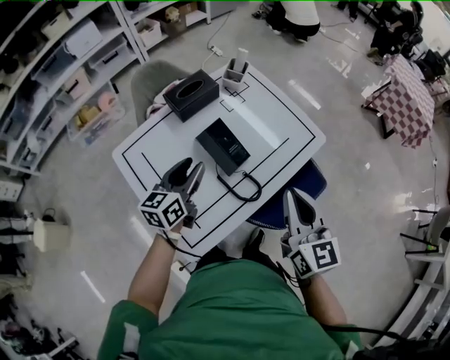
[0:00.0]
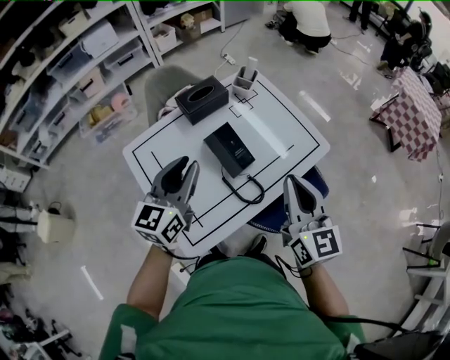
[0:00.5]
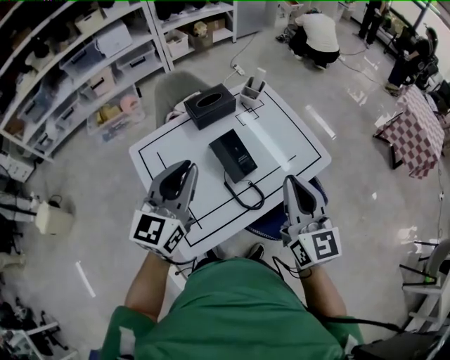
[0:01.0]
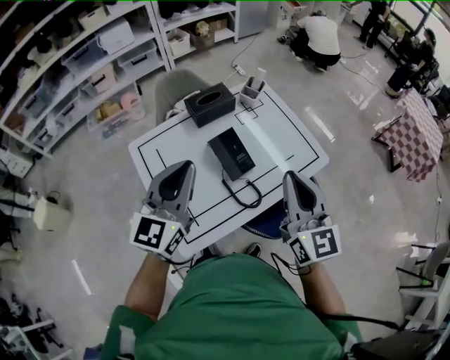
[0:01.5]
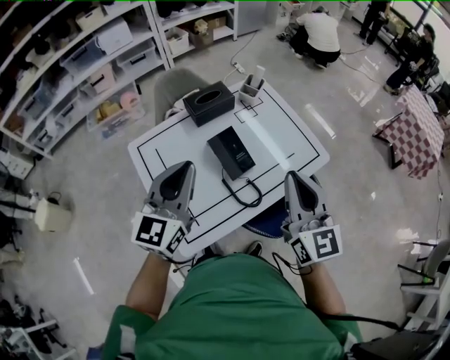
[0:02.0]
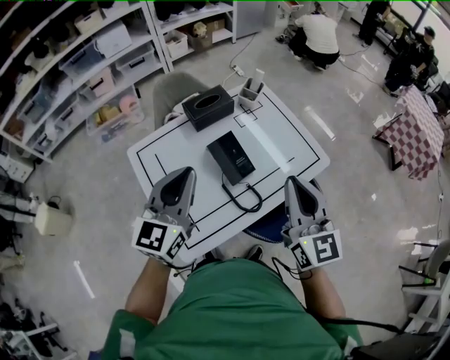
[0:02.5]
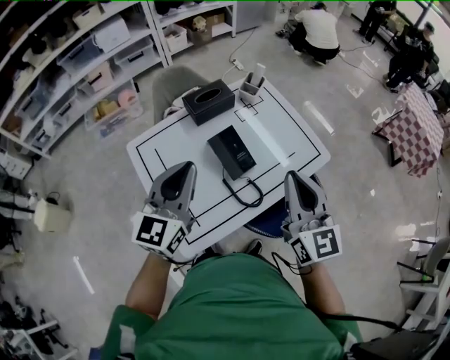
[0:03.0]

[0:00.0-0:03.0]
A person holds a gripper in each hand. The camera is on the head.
0:00.0 to 0:01.5: The right gripper shifts roughly 10 cm upward; the left gripper travels upward and backward by roughly 20 cm, changes its angle by some 30 degrees, and closes its fingers.
0:01.5 to 0:03.0: The grippers make only small movements.

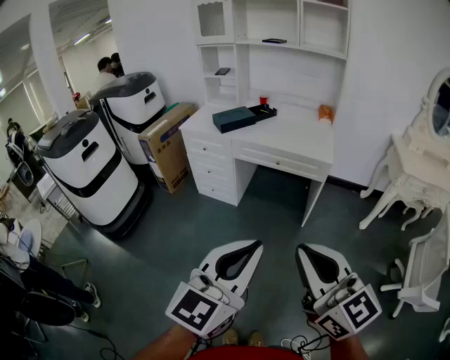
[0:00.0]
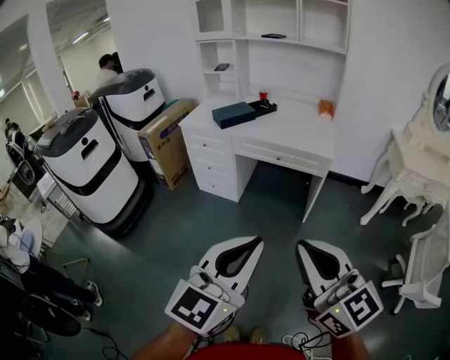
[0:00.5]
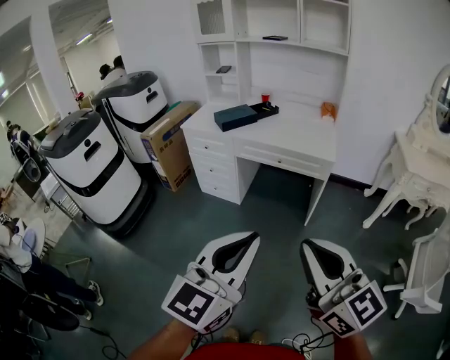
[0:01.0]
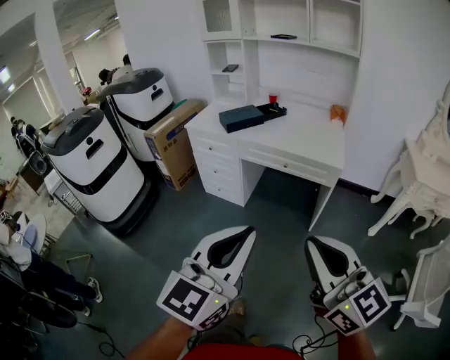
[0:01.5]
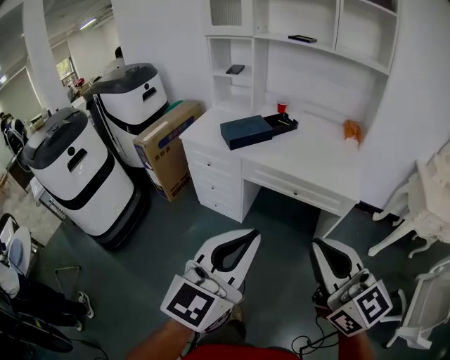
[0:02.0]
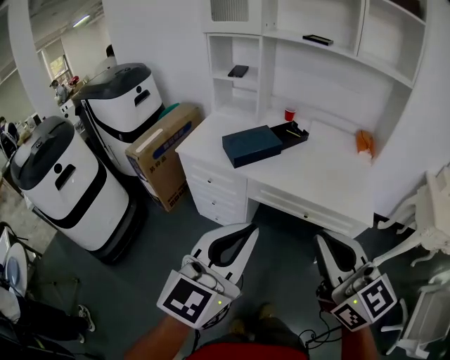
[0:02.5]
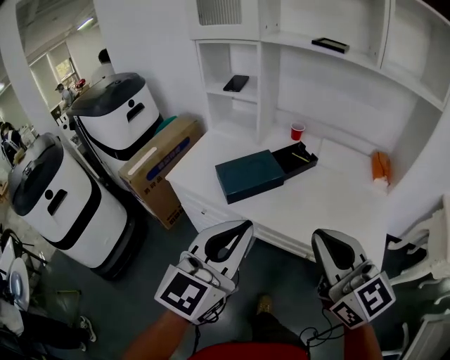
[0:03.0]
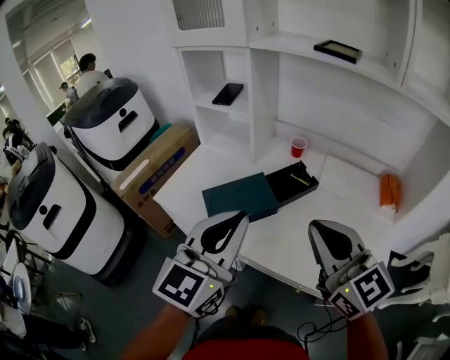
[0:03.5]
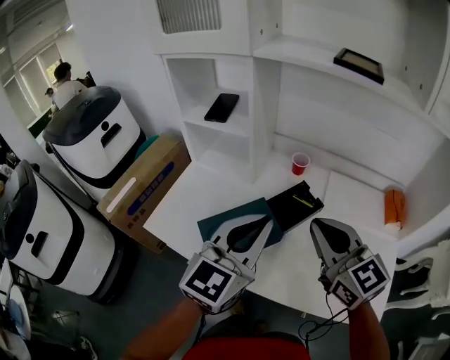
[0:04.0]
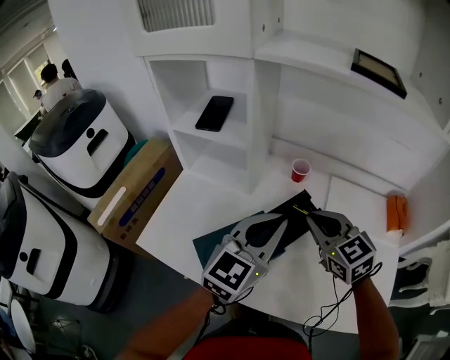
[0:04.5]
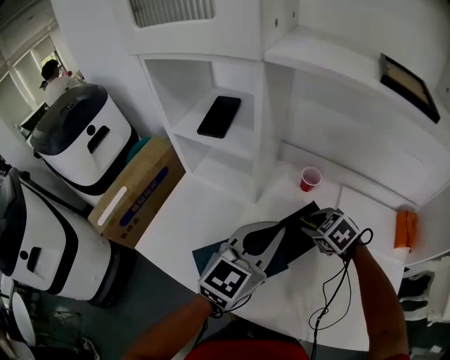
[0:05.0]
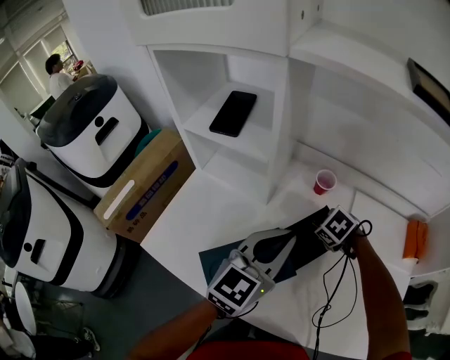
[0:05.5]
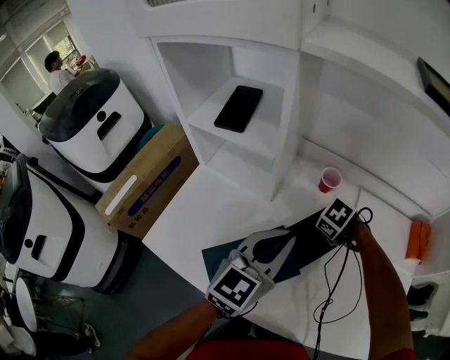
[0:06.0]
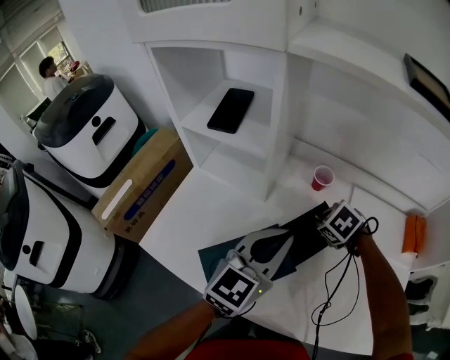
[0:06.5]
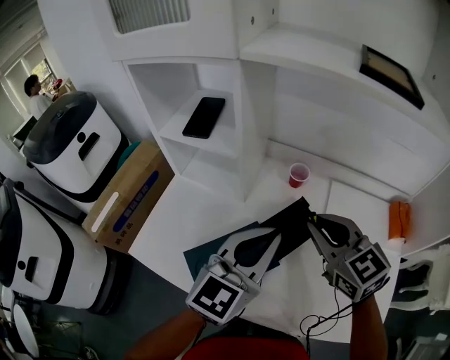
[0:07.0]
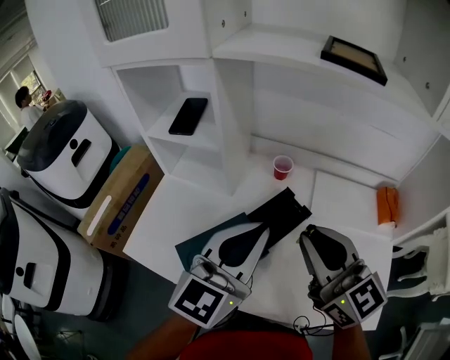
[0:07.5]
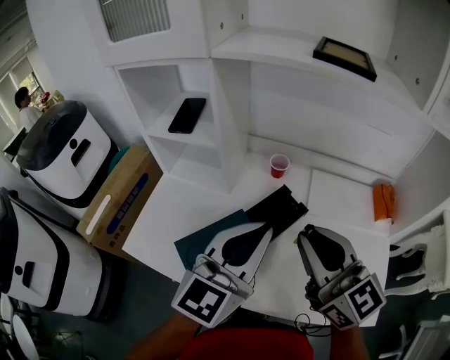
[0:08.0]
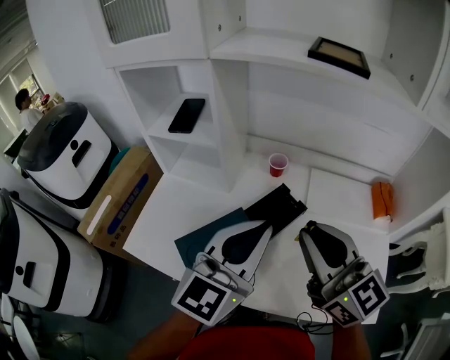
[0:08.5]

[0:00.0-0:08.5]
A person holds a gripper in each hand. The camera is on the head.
0:00.0 to 0:02.0: Both grippers travel together forward, about 25 cm.
0:02.0 to 0:04.0: The pair of grippers is taken forward, roughly 60 cm.
0:04.0 to 0:06.5: The right gripper moves downward, some 25 cm, points its fingers some 70 degrees further downward, and opens, then closes again. Meanwhile the left gripper changes place by approximately 15 cm.
0:06.5 to 0:08.5: The right gripper is displaced upward and backward by approximately 35 cm, and angles its fingers upward, by approximately 70 degrees. Meanwhile the left gripper travels upward and backward by approximately 10 cm.

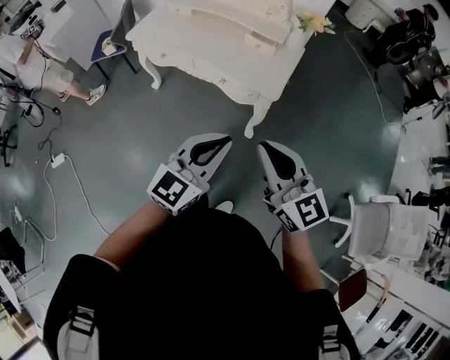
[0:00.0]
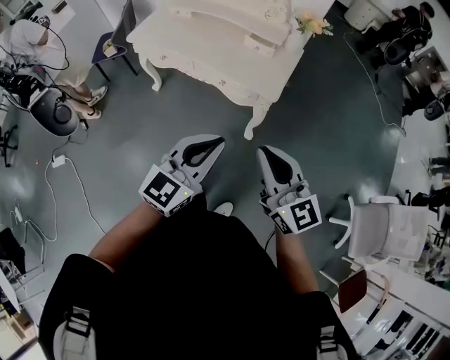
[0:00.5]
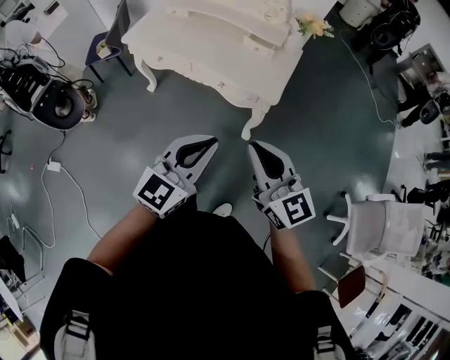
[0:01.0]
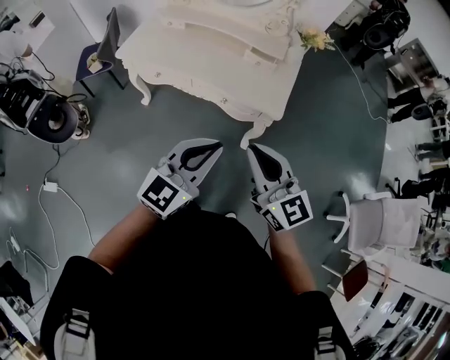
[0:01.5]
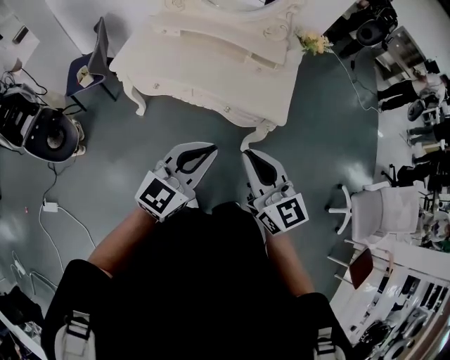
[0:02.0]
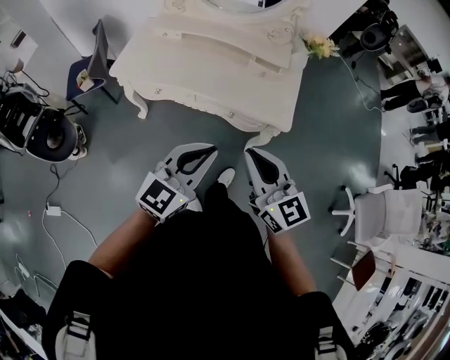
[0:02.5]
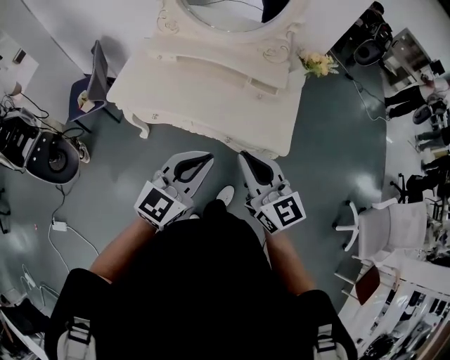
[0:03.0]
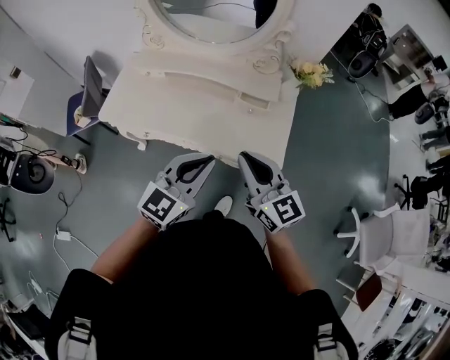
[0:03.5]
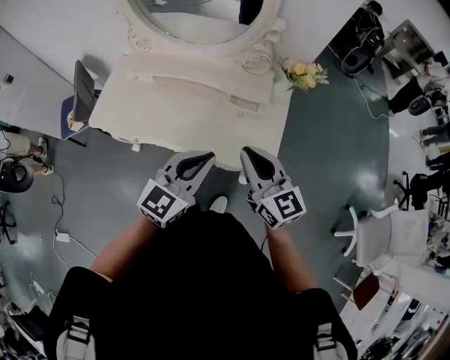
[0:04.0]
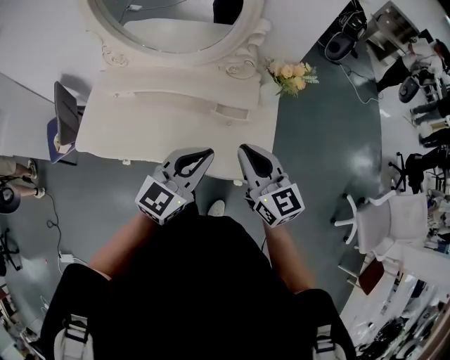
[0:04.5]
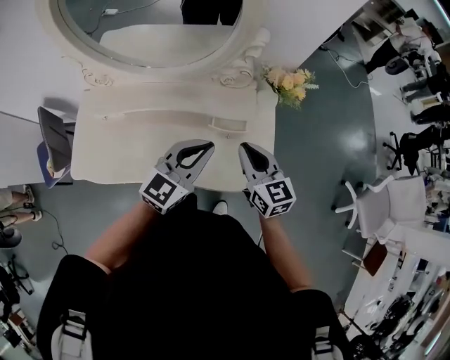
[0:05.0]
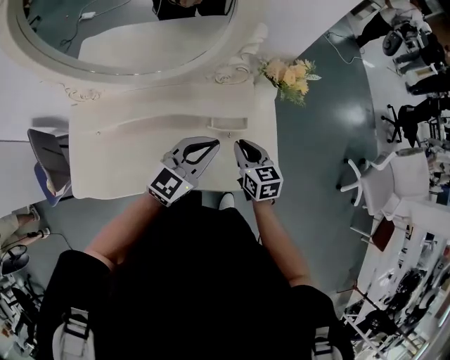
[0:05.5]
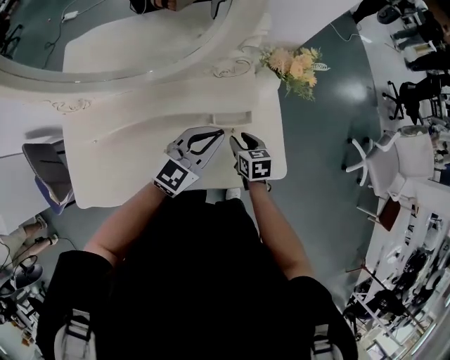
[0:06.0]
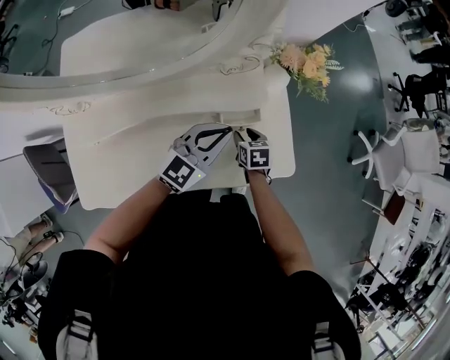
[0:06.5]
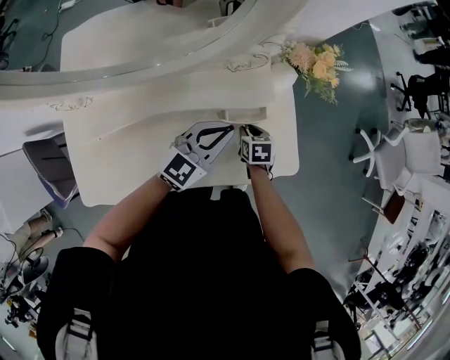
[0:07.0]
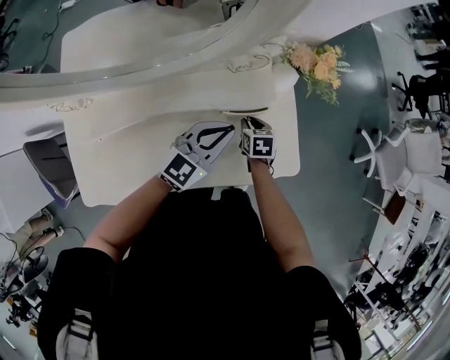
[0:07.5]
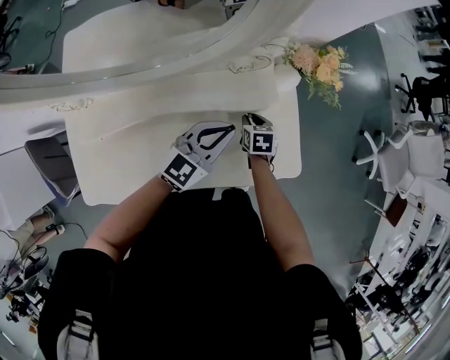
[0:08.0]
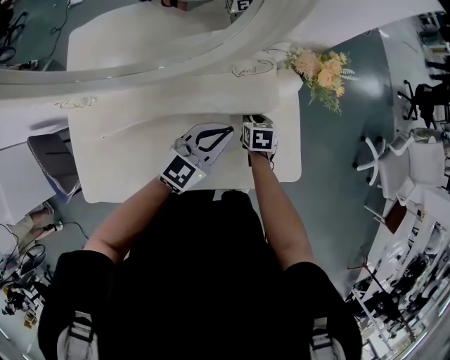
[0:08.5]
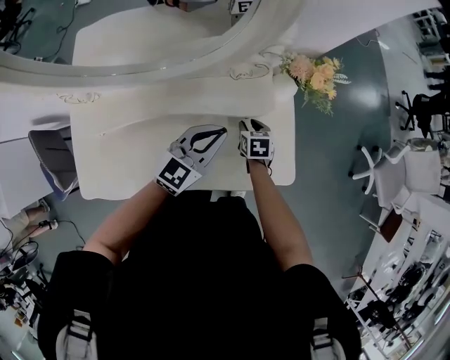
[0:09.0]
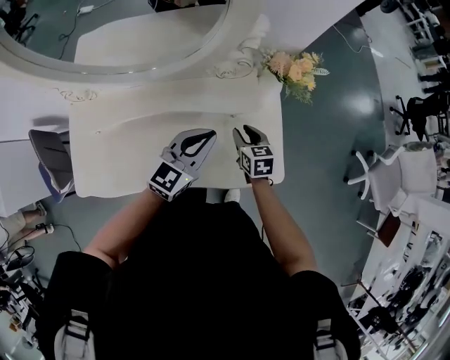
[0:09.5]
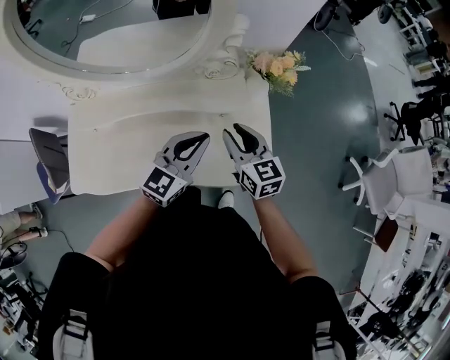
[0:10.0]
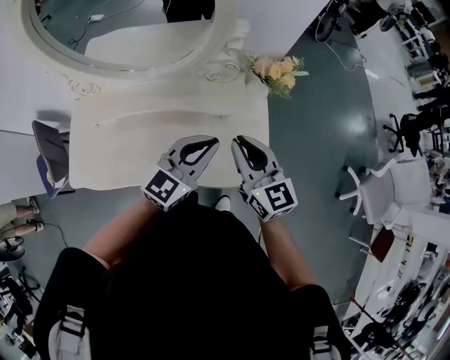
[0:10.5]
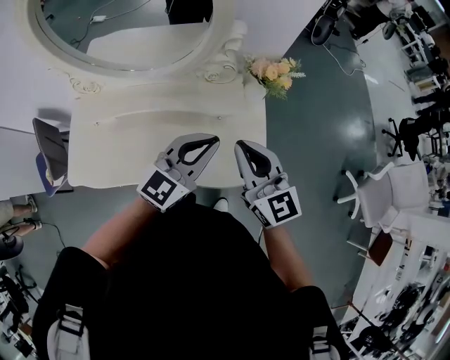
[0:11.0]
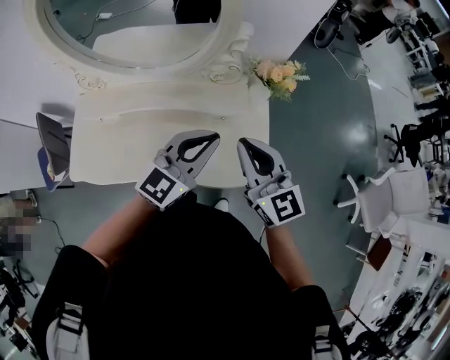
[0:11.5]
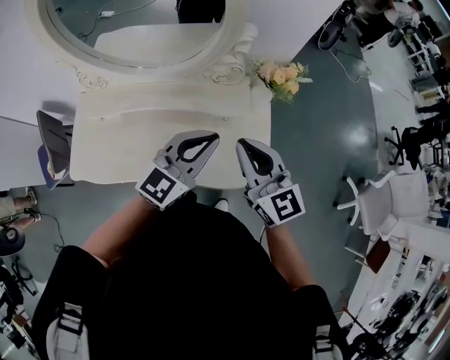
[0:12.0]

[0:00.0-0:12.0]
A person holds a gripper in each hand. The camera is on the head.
0:00.0 to 0:02.0: The two grippers go roughly 25 cm to the left and forward.
0:02.0 to 0:04.0: Both grippers move forward, roughly 30 cm.
0:04.0 to 0:06.0: The left gripper ends up some 30 cm from where it was, and swivels some 30 degrees. Meanwhile the right gripper moves downward, some 30 cm, angles its fingers downward, by roughly 40 degrees, and opens its fingers.
0:06.0 to 0:08.0: The right gripper is displaced forward and downward by approximately 10 cm.
0:08.0 to 0:10.0: The left gripper shifts roughly 10 cm upward and backward. The right gripper goes roughly 25 cm upward, and angles its fingers upward, by approximately 40 degrees.
0:10.0 to 0:12.0: The left gripper is displaced upward by approximately 10 cm, while the right gripper heads upward and backward, covering some 15 cm, turns by roughly 20 degrees, and closes up.

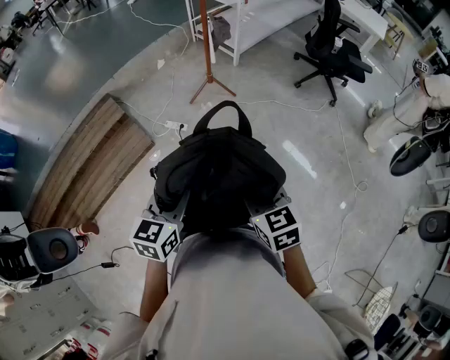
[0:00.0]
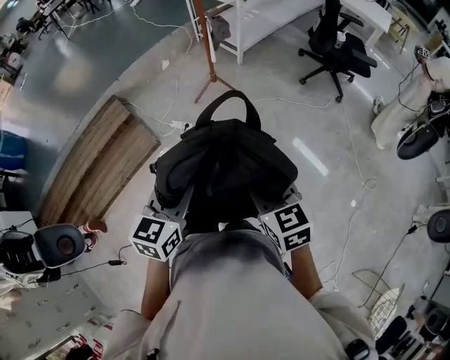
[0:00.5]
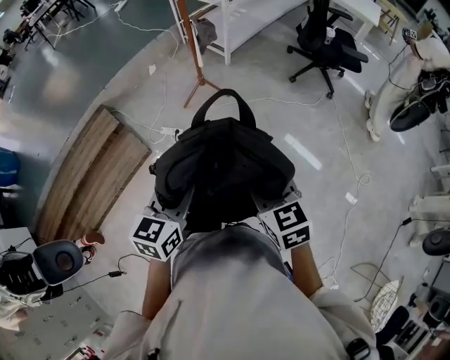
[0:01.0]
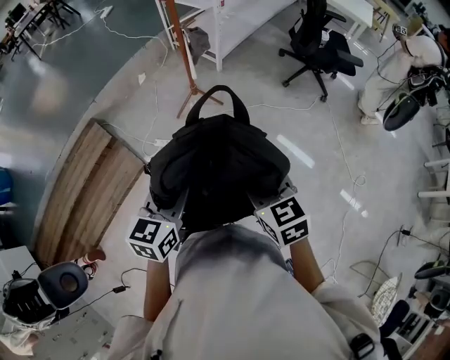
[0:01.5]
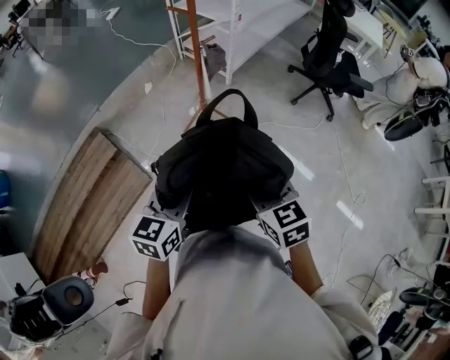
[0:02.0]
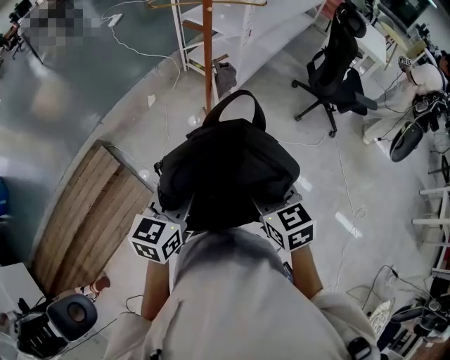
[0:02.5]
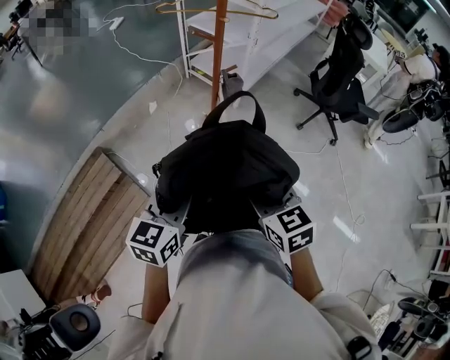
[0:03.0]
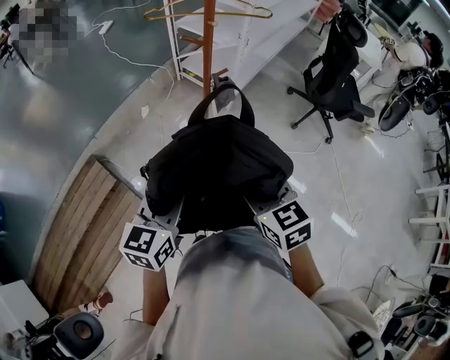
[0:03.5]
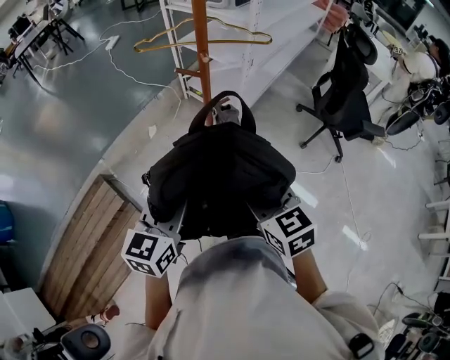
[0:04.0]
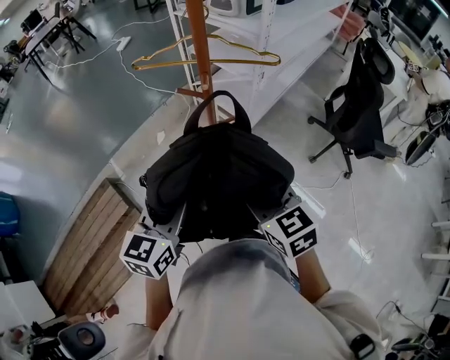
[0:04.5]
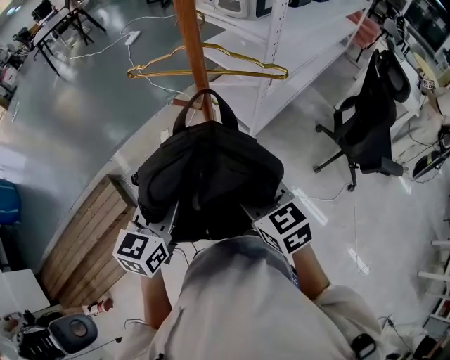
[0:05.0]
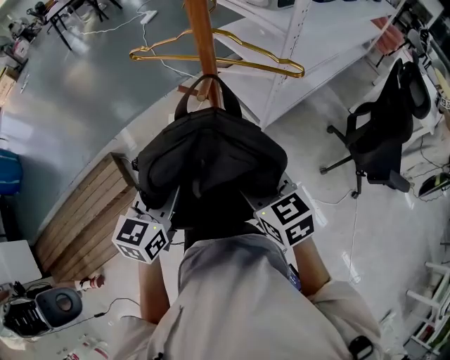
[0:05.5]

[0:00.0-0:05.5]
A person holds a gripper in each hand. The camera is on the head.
0:00.0 to 0:02.0: Both grippers travel together forward, approximately 30 cm.
0:02.0 to 0:03.5: The grippers both shift forward and to the left by roughly 20 cm.
0:03.5 to 0:05.5: Both grippers move forward, about 25 cm. The right gripper rotates about 20 degrees.
